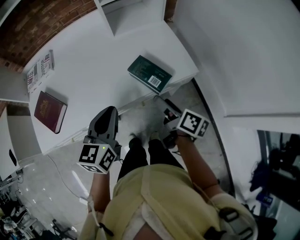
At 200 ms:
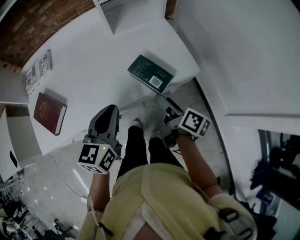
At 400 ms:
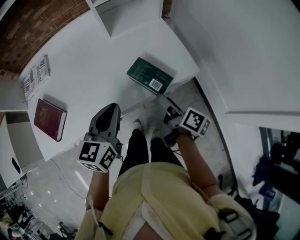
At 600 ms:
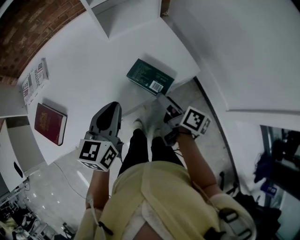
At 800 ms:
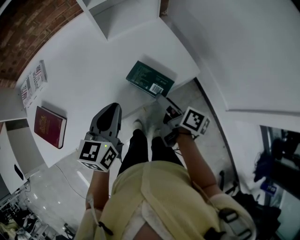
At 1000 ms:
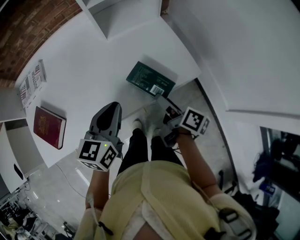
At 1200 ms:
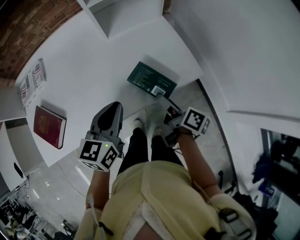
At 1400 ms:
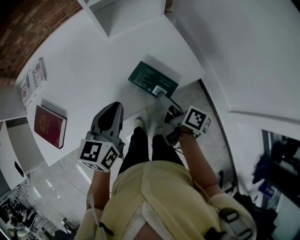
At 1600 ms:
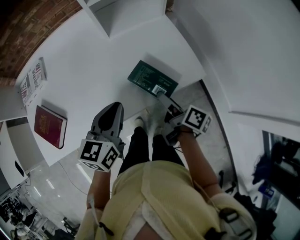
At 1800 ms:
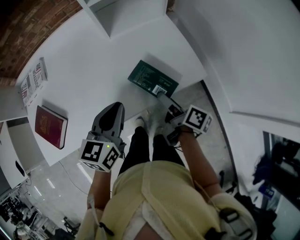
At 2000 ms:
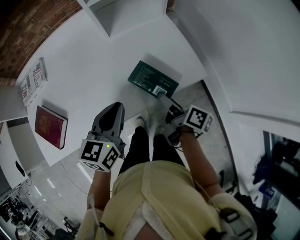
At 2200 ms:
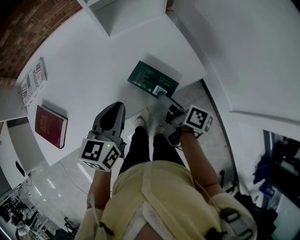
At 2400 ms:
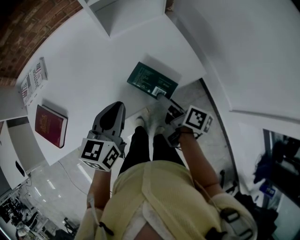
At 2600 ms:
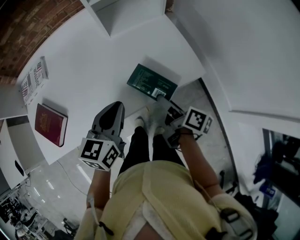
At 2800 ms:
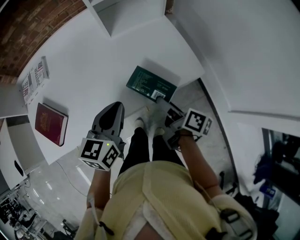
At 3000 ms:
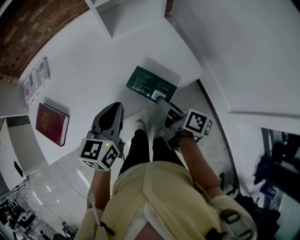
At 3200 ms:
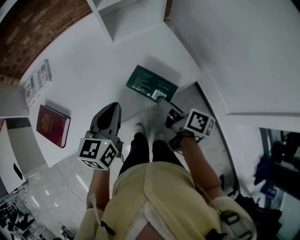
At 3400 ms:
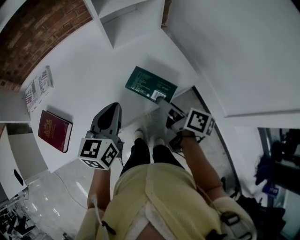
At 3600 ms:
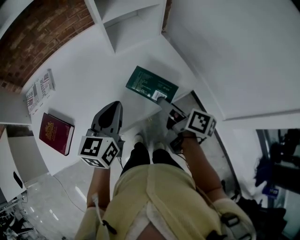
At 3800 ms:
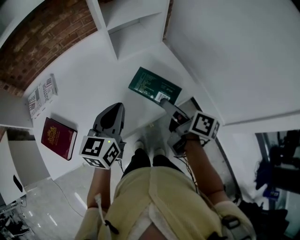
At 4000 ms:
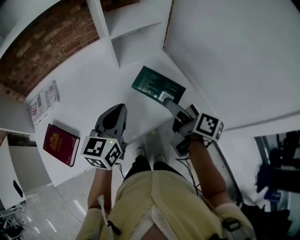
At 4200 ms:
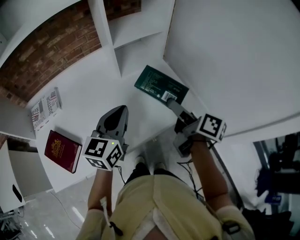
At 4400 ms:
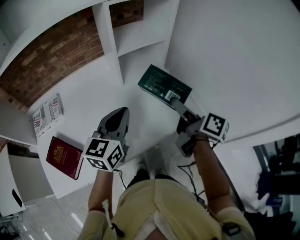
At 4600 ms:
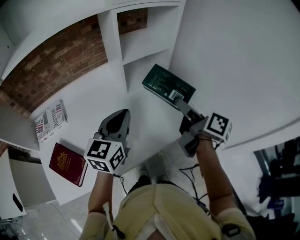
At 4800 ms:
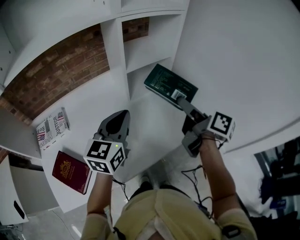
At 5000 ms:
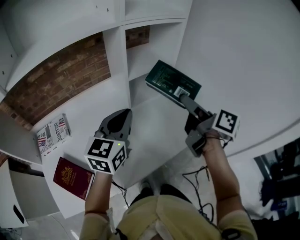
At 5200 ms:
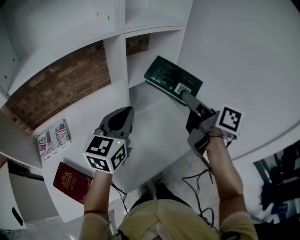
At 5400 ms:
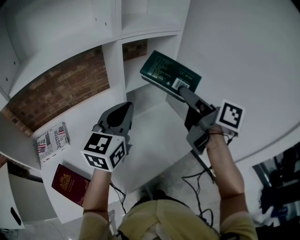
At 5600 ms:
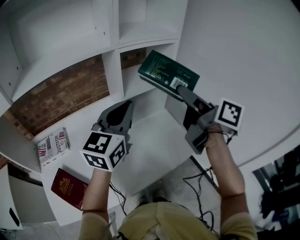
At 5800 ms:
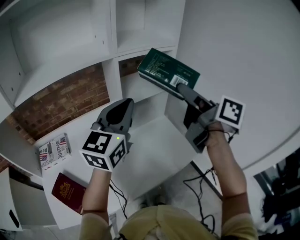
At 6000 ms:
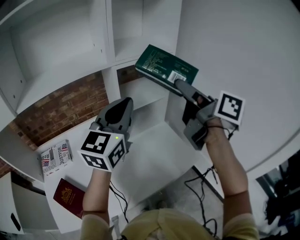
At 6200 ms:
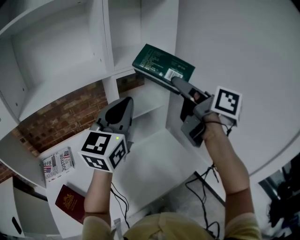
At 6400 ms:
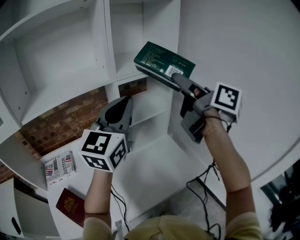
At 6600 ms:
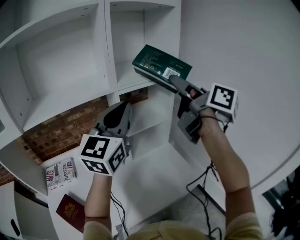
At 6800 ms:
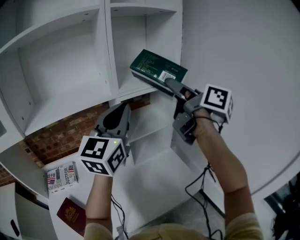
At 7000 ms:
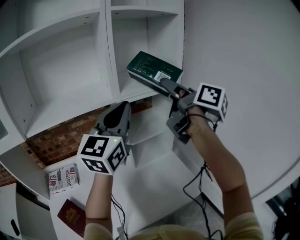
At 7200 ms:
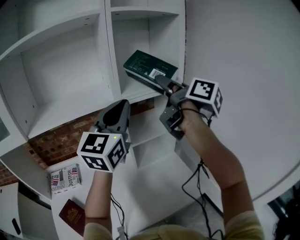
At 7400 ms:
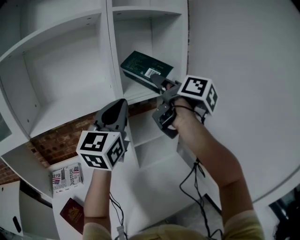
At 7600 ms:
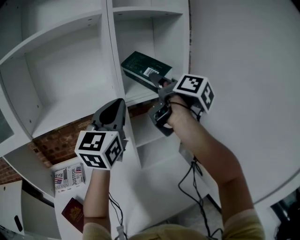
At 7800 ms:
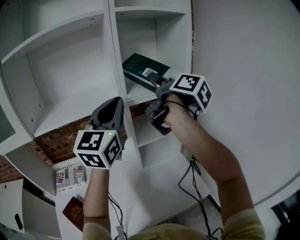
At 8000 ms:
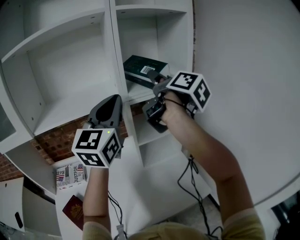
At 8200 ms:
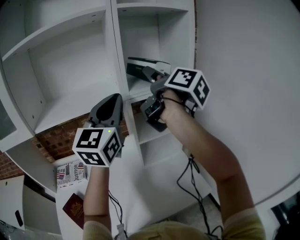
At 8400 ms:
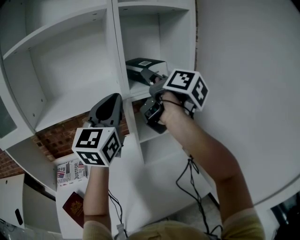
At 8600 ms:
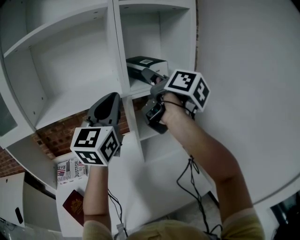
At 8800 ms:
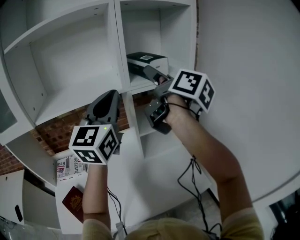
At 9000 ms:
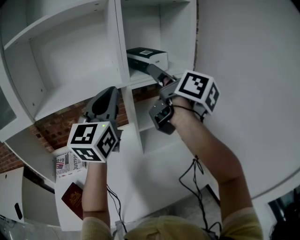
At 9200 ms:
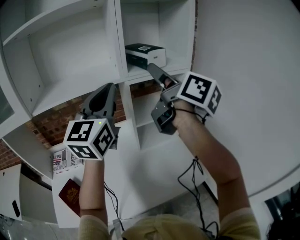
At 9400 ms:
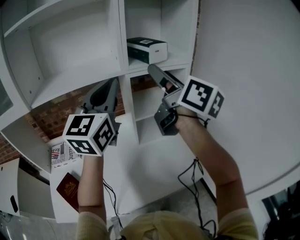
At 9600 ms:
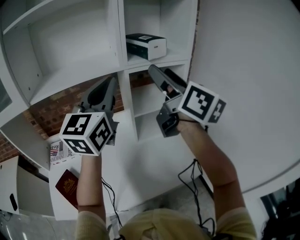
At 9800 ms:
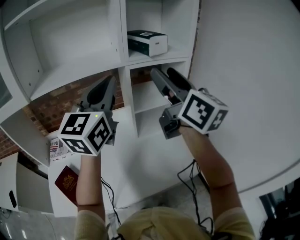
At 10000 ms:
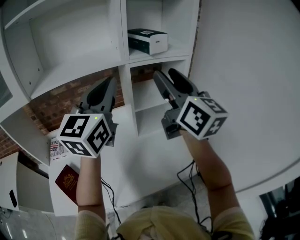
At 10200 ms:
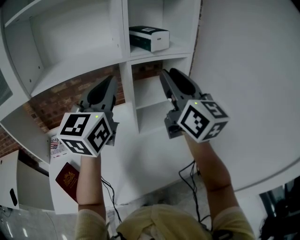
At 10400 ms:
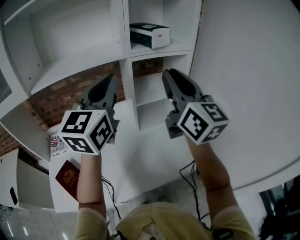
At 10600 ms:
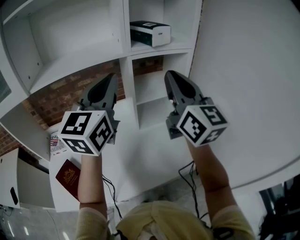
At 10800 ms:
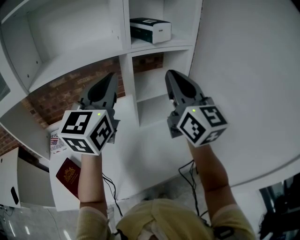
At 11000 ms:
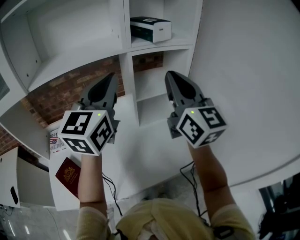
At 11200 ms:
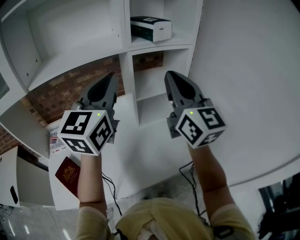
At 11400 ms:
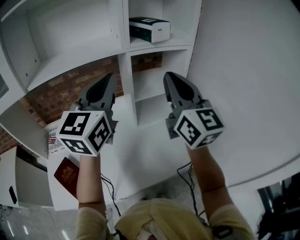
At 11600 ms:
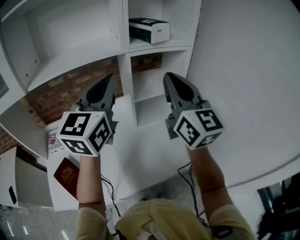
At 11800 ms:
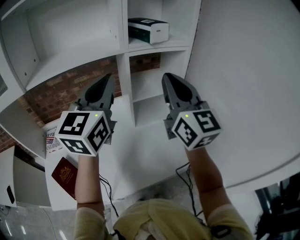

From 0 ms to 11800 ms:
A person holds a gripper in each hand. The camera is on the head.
From 0 ms to 1400 ms: The grippers both shift forward by some 5 cm.
From 1400 ms to 3000 ms: There are only small adjustments of the grippers.
From 3000 ms to 4400 ms: The left gripper travels upward and forward by roughly 15 cm; the right gripper goes about 20 cm upward and forward.
From 4400 ms to 6000 ms: The right gripper goes roughly 25 cm upward, and changes its angle by approximately 20 degrees. Meanwhile the left gripper goes approximately 25 cm upward and forward, and turns by roughly 20 degrees.
From 6000 ms to 7400 ms: The left gripper goes about 10 cm upward and forward; the right gripper shifts approximately 15 cm forward, upward and to the left.
From 7400 ms to 8800 ms: The right gripper moves about 5 cm.
From 8800 ms to 10400 ms: The right gripper travels backward and downward by approximately 15 cm, twists some 40 degrees counterclockwise, seen from behind, and closes its fingers. The left gripper is displaced backward by approximately 5 cm.
From 10400 ms to 11800 ms: The grippers make only small movements.

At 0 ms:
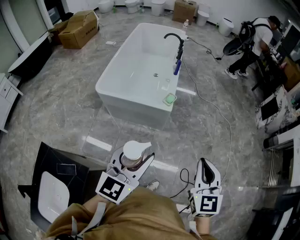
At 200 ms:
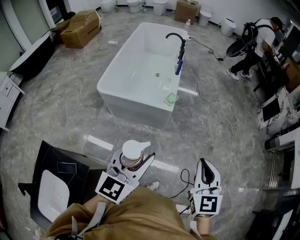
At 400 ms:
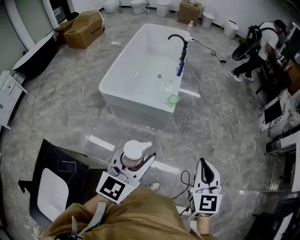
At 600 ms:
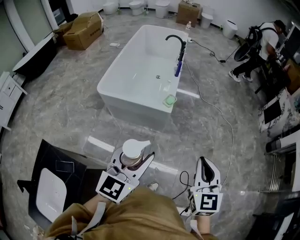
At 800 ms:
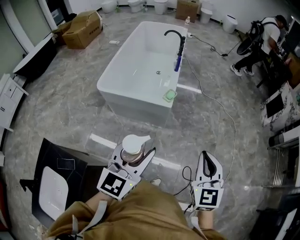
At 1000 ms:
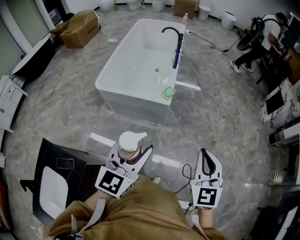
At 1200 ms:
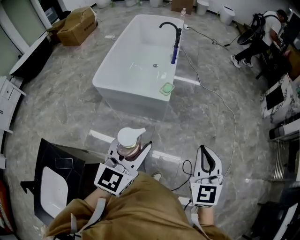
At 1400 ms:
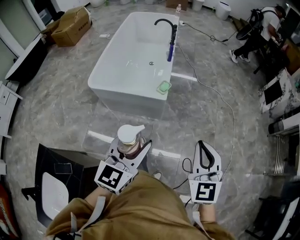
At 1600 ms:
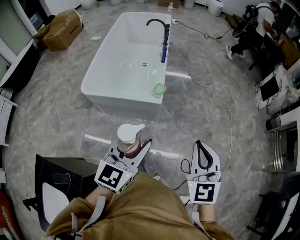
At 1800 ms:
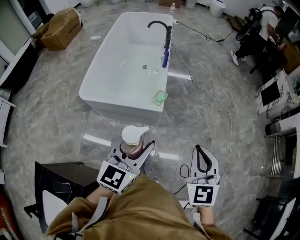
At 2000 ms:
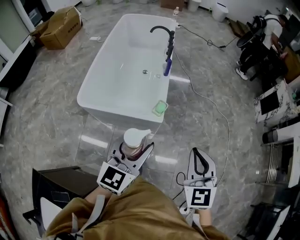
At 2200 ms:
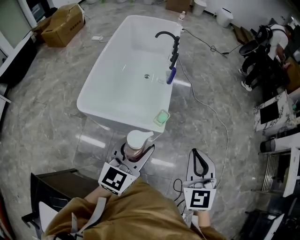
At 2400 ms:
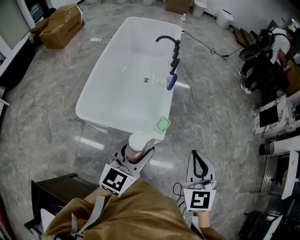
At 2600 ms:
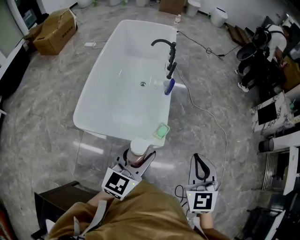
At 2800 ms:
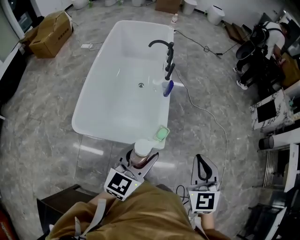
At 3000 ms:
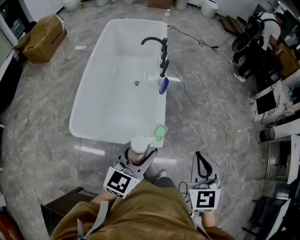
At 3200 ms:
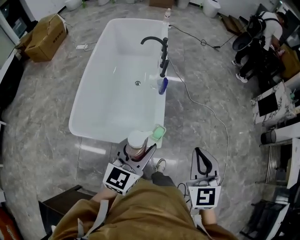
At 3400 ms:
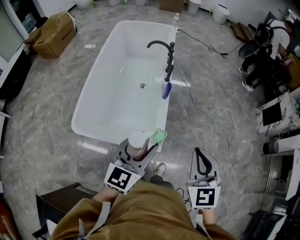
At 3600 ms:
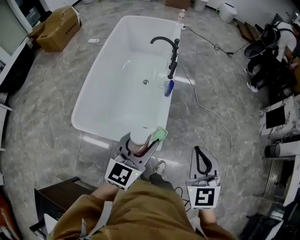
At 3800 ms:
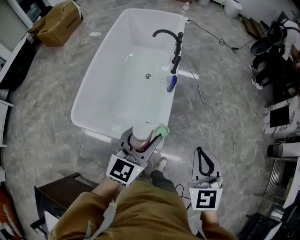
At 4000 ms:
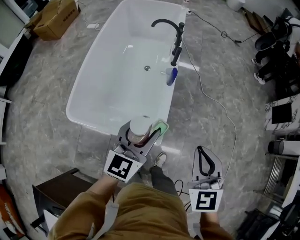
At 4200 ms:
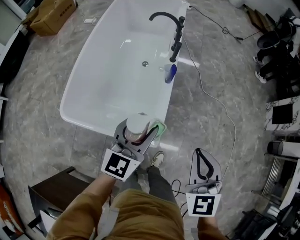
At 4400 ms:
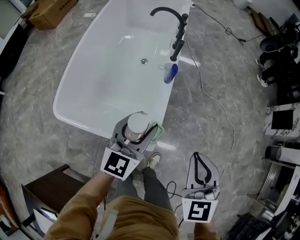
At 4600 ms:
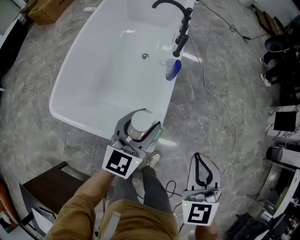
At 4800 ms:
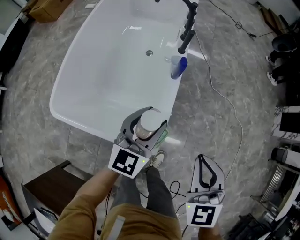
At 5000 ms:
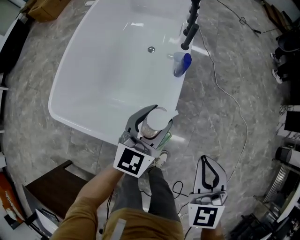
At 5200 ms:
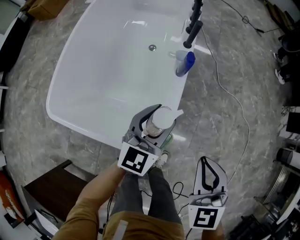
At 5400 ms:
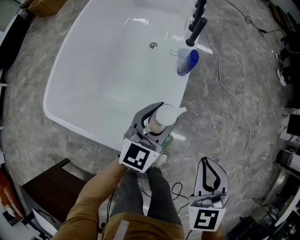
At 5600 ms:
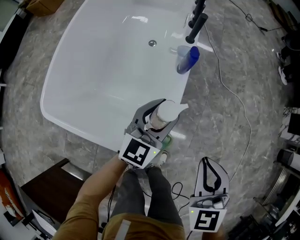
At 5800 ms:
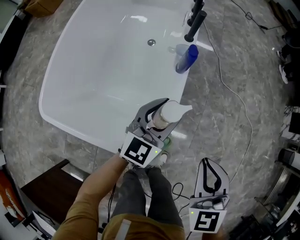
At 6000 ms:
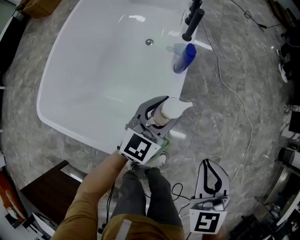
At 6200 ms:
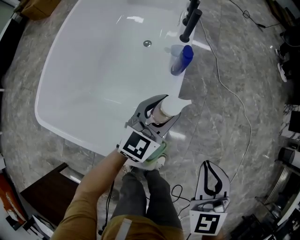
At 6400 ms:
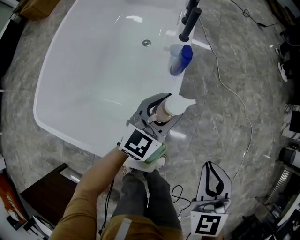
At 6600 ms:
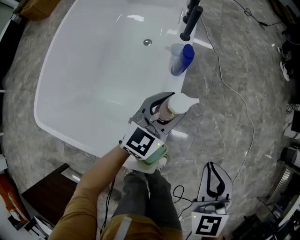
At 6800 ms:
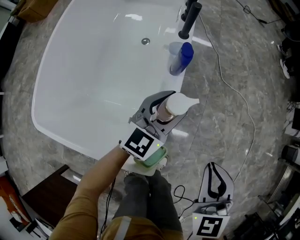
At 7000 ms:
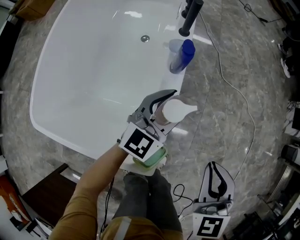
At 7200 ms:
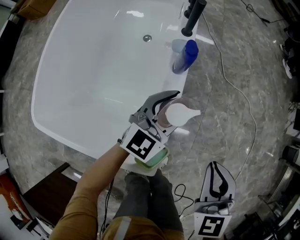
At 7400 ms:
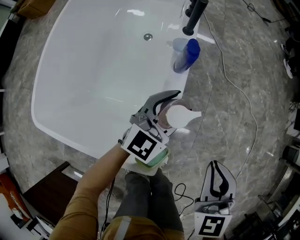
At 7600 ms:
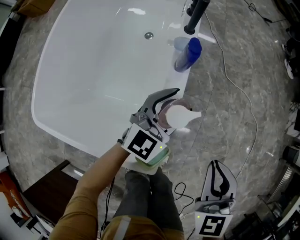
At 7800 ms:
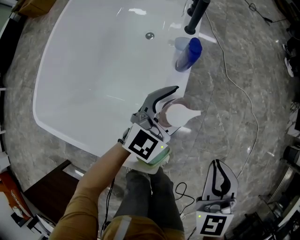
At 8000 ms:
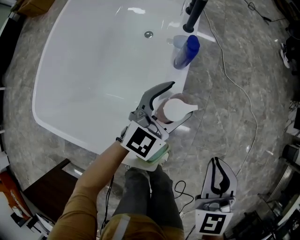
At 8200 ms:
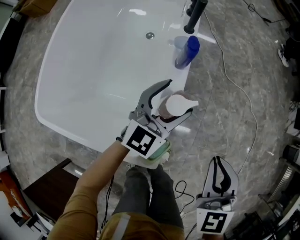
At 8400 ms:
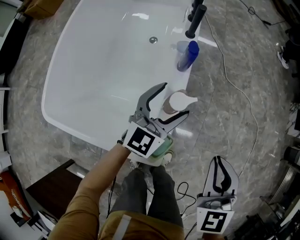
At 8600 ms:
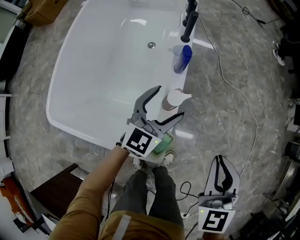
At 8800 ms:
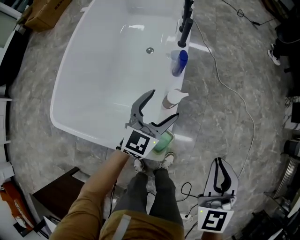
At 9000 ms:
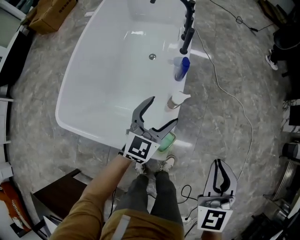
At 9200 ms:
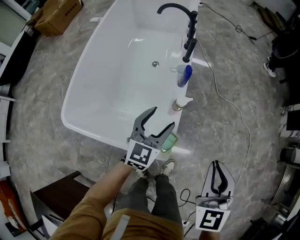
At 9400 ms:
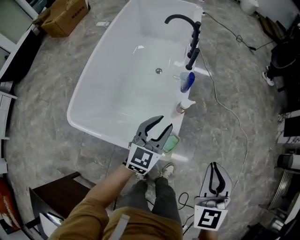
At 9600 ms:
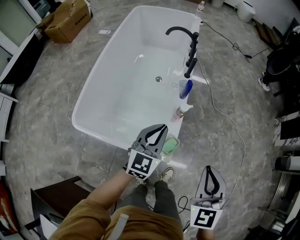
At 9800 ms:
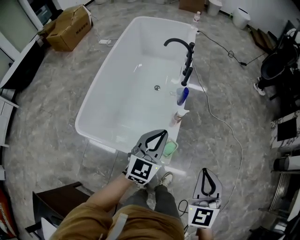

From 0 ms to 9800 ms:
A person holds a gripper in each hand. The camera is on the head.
From 0 ms to 1400 ms: The grippers both shift forward by some 5 cm.
From 1400 ms to 2800 ms: The left gripper is displaced forward by approximately 35 cm; the right gripper heads forward and to the left, covering about 35 cm.
From 2800 ms to 4200 ms: Both grippers move forward and downward, roughly 20 cm.
From 4200 ms to 5600 ms: The right gripper goes about 20 cm downward, while the left gripper goes some 25 cm downward and forward.
From 5600 ms to 7000 ms: The right gripper goes about 5 cm downward; the left gripper travels forward and downward by roughly 10 cm.
From 7000 ms to 8400 ms: The left gripper opens.
From 8400 ms to 9800 ms: The grippers both shift upward and backward by some 30 cm. The left gripper closes up.

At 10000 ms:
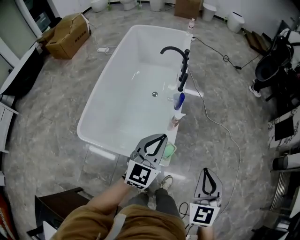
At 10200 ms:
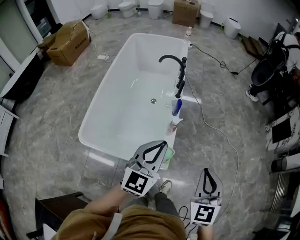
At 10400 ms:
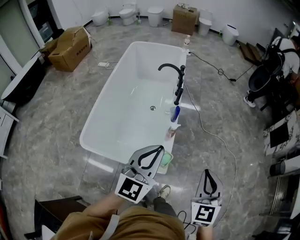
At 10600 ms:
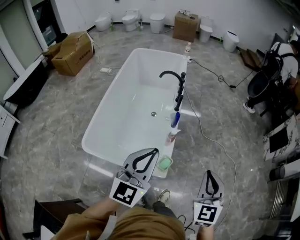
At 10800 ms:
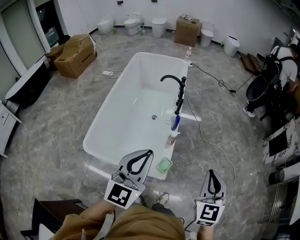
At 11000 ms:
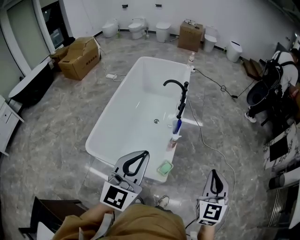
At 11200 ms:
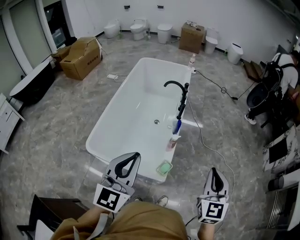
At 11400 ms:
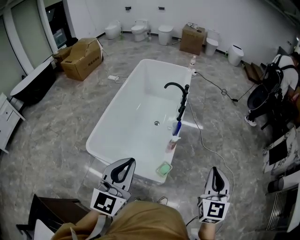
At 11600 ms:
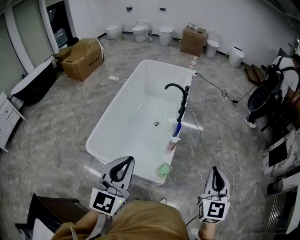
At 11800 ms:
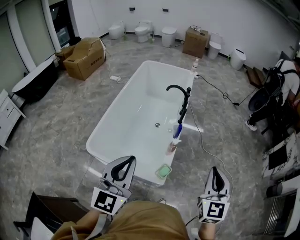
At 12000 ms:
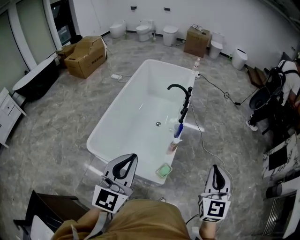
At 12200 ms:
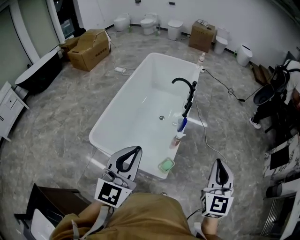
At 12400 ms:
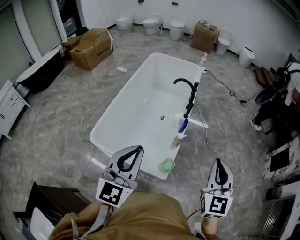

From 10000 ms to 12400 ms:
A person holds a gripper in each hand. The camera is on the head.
From 10000 ms to 11200 ms: The right gripper travels upward by roughly 10 cm. Meanwhile the left gripper travels upward and backward by approximately 25 cm.
From 11200 ms to 12400 ms: The right gripper ends up some 5 cm from where it was.
